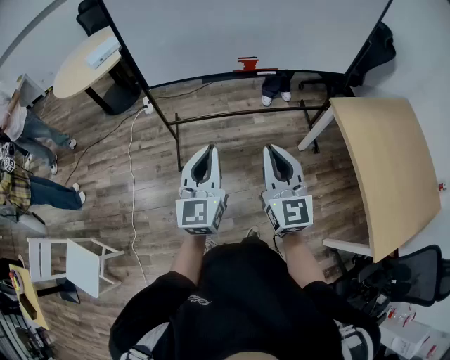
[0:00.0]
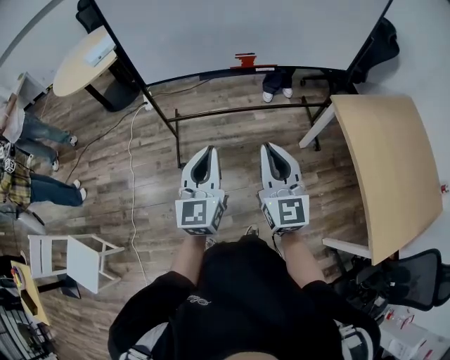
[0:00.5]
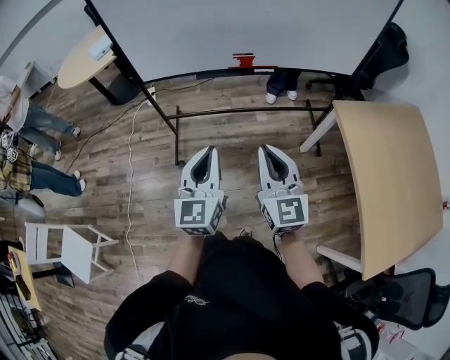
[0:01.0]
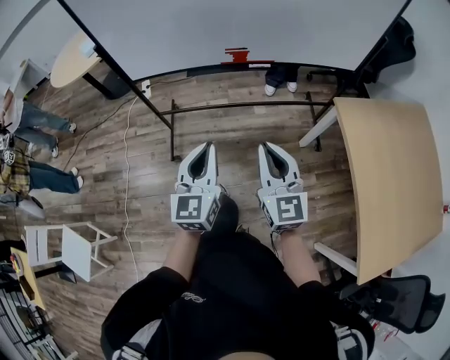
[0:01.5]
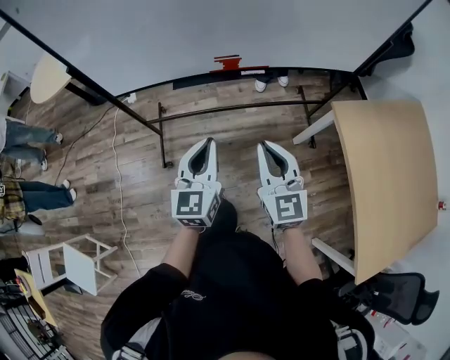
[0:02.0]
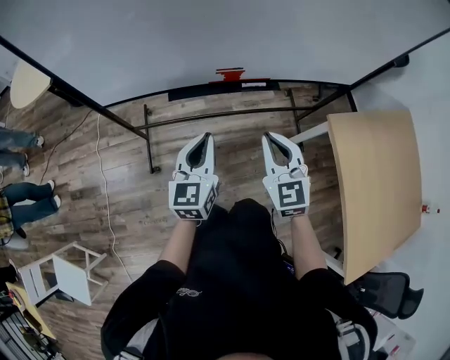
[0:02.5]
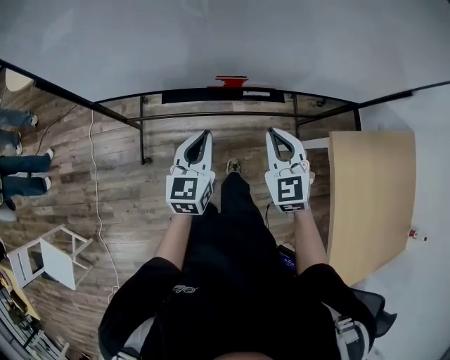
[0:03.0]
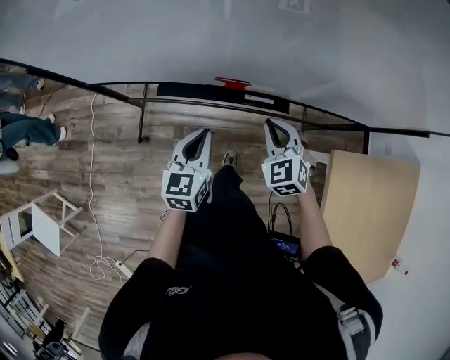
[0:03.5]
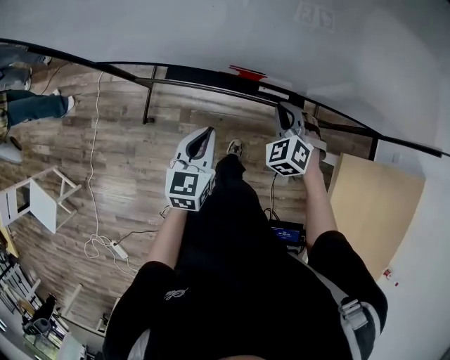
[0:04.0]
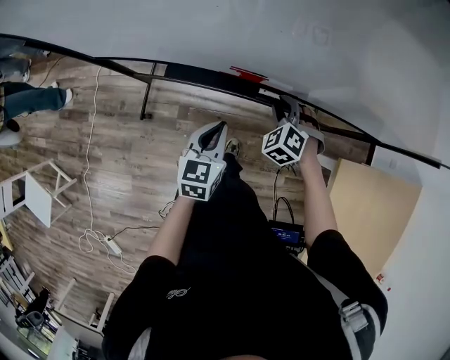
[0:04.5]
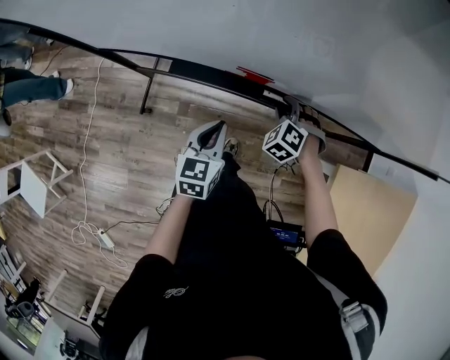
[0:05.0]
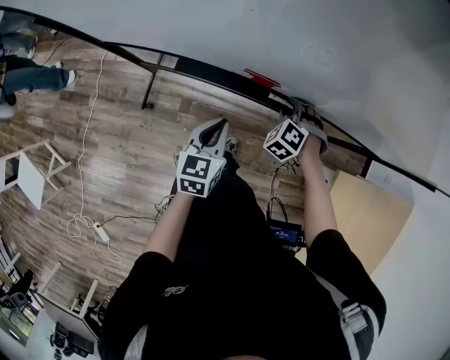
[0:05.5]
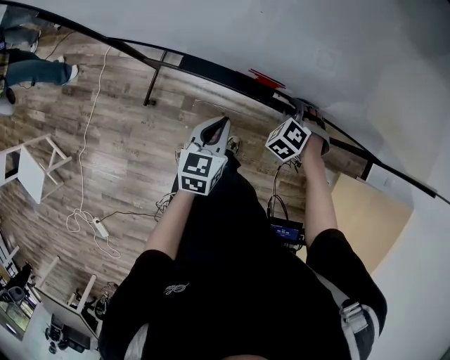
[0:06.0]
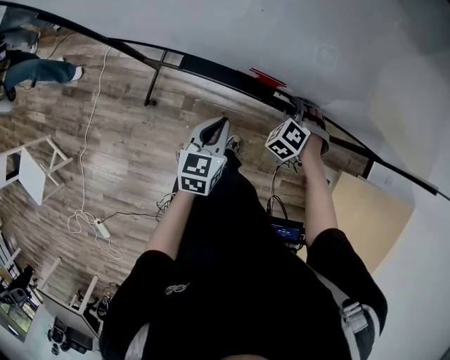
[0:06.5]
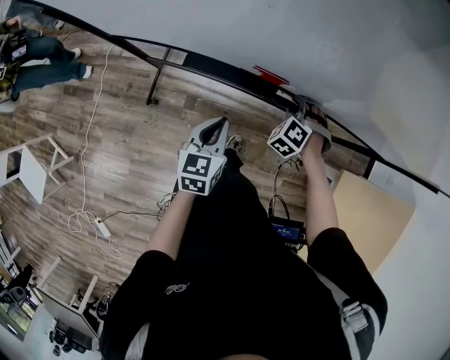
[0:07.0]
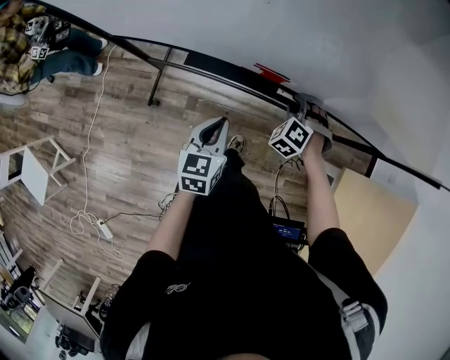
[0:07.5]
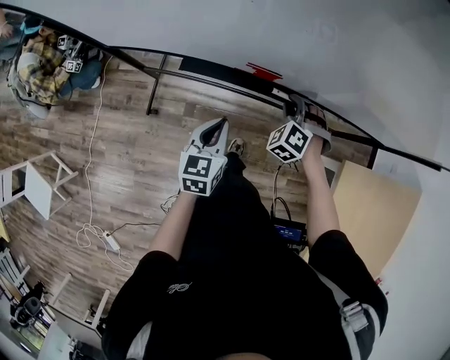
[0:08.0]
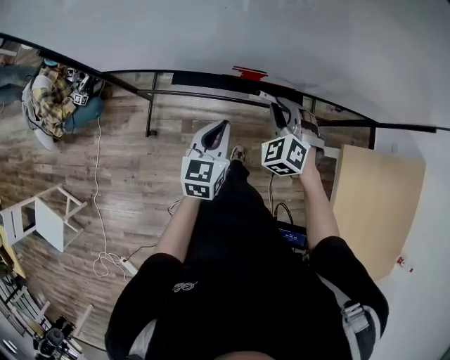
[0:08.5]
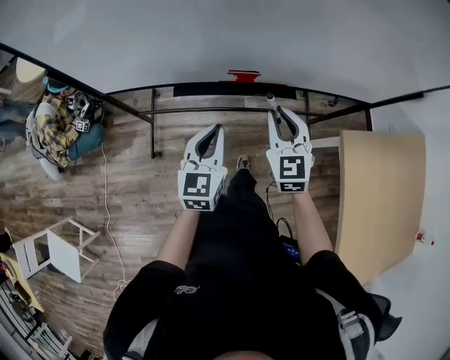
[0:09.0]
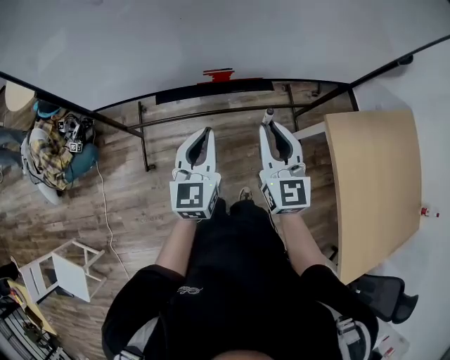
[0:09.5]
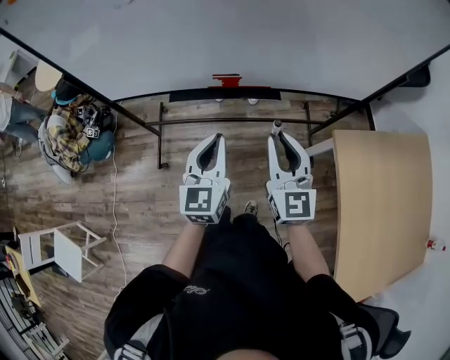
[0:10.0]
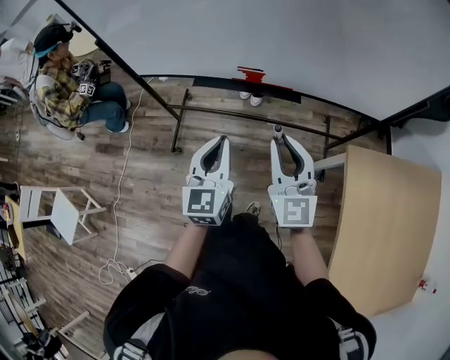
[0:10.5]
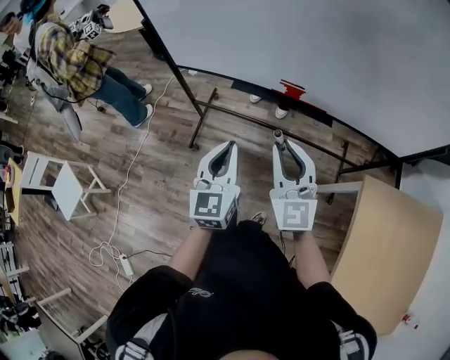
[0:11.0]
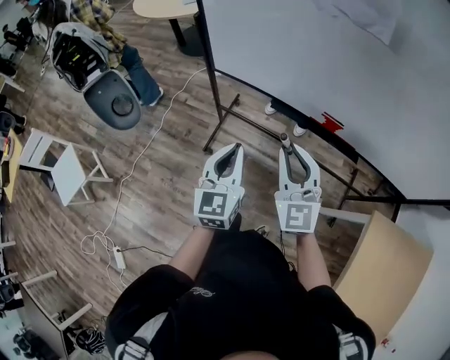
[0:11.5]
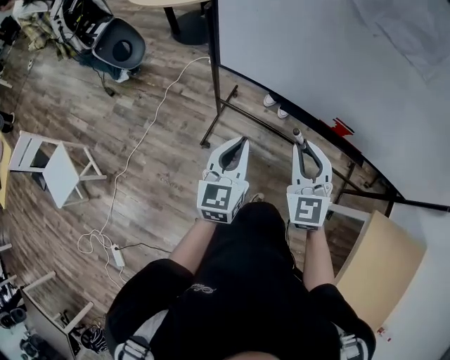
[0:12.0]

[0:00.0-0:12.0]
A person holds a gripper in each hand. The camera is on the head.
0:00.0 to 0:02.0: The right gripper moves forward, to the right and downward, roughly 25 cm. The left gripper shifts approximately 25 cm forward and to the right.
0:02.0 to 0:04.0: The right gripper goes some 40 cm forward and downward, and tilts its fingers roughly 40 degrees downward, while the left gripper heads forward and downward, covering about 25 cm, and turns by about 20 degrees.
0:04.0 to 0:06.0: The right gripper travels downward by some 10 cm, and turns by about 20 degrees. Meanwhile the left gripper shifts by some 5 cm.
0:06.0 to 0:08.0: The right gripper shifts by approximately 5 cm.
0:08.0 to 0:10.0: The left gripper is displaced upward and backward by approximately 20 cm, and changes its angle by approximately 20 degrees. The right gripper shifts approximately 35 cm upward and backward, and tilts its fingers roughly 50 degrees upward.
0:10.0 to 0:12.0: The right gripper moves about 30 cm, and swivels approximately 40 degrees. The left gripper ends up approximately 30 cm from where it was, and swivels about 20 degrees.

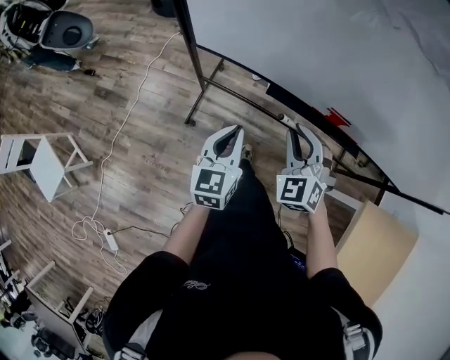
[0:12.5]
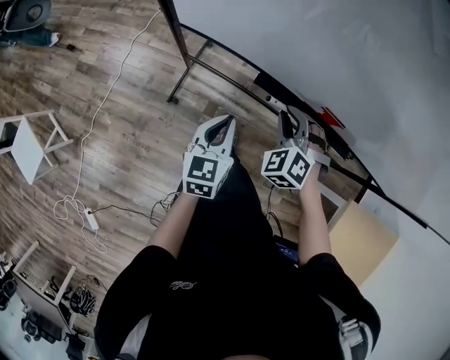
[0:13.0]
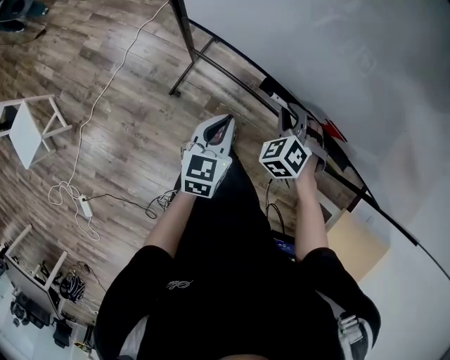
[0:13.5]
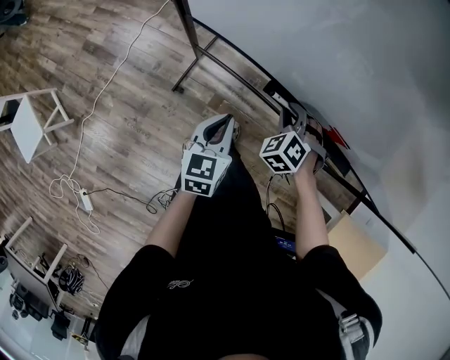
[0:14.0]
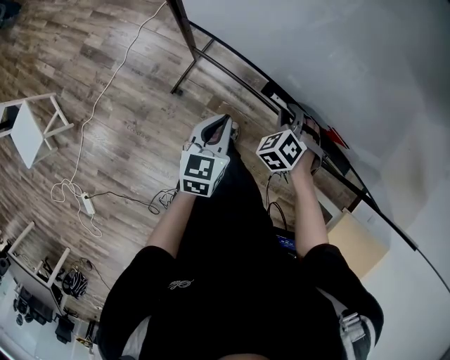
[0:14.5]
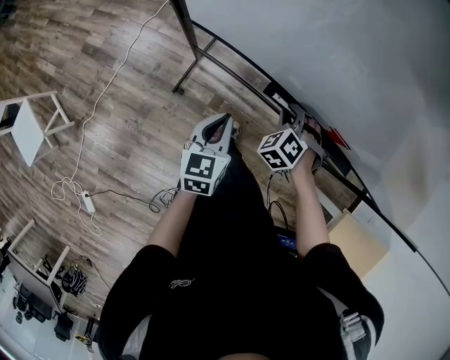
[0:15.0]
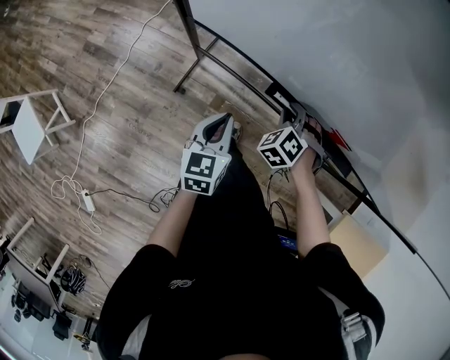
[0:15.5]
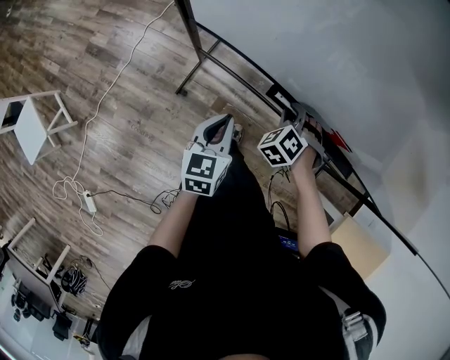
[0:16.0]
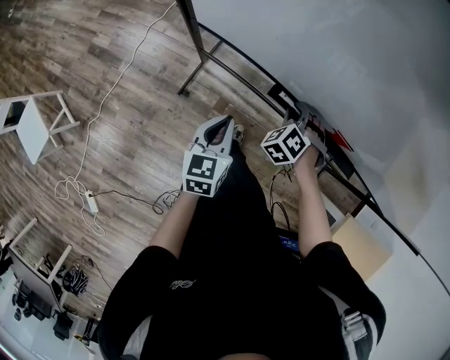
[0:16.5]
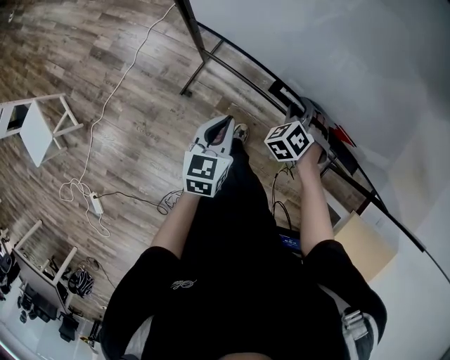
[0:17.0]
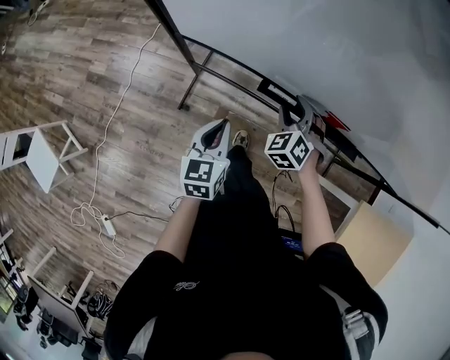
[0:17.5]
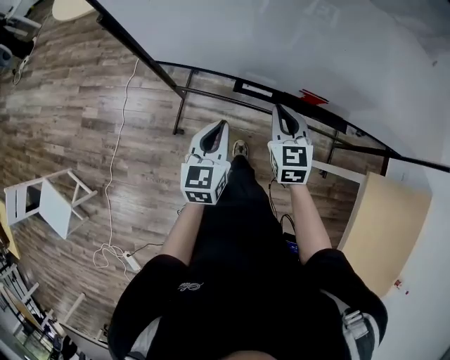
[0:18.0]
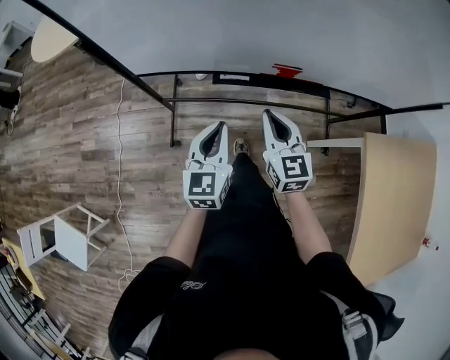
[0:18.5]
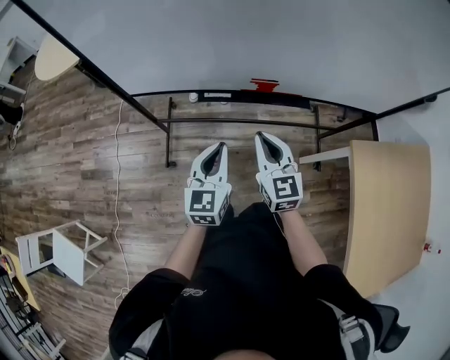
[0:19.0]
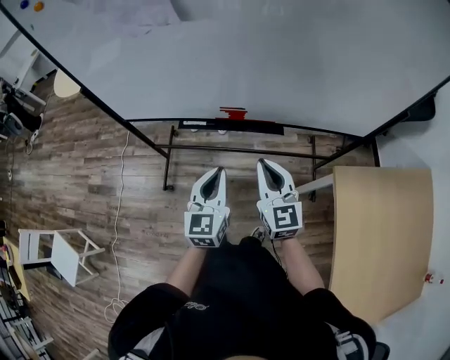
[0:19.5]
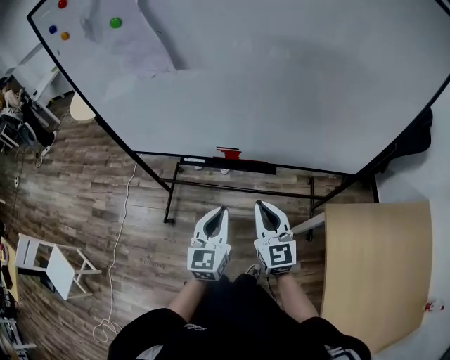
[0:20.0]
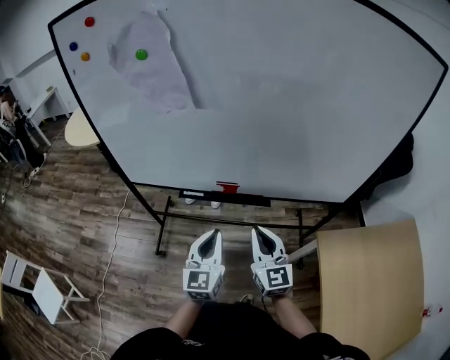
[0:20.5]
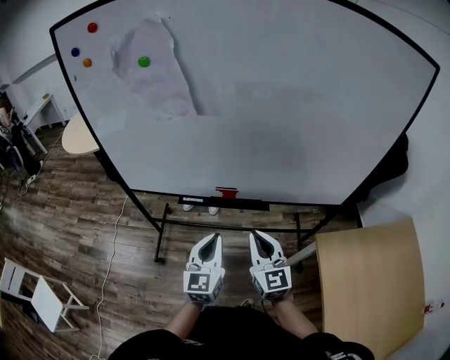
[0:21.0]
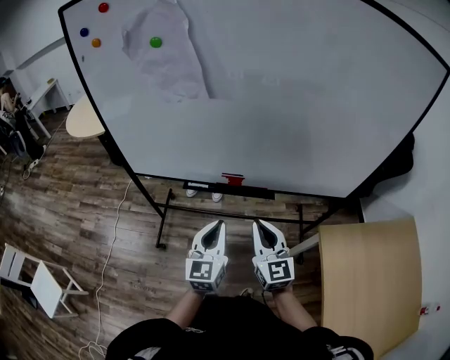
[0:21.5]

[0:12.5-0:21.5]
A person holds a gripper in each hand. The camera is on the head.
0:12.5 to 0:14.5: The left gripper goes roughly 10 cm downward and forward, while the right gripper travels downward and forward by approximately 20 cm, and swivels approximately 30 degrees.
0:14.5 to 0:17.0: The grippers stay close to where they were, moving slightly.
0:17.0 to 0:19.5: The right gripper is displaced backward, upward and to the right by some 40 cm, tips its fingers upward by about 50 degrees, and closes, while the left gripper travels to the right, upward and backward by approximately 35 cm, and rotates roughly 30 degrees.
0:19.5 to 0:21.5: The two grippers go about 5 cm upward.

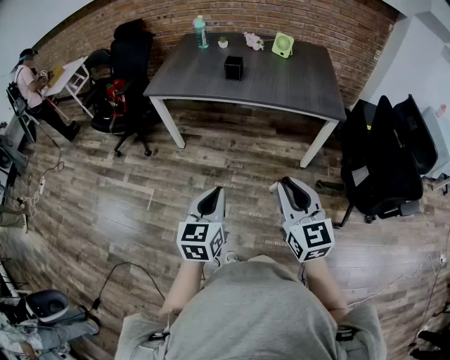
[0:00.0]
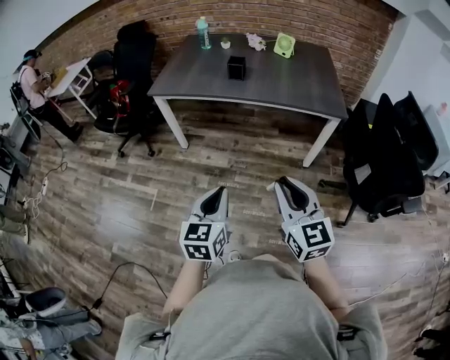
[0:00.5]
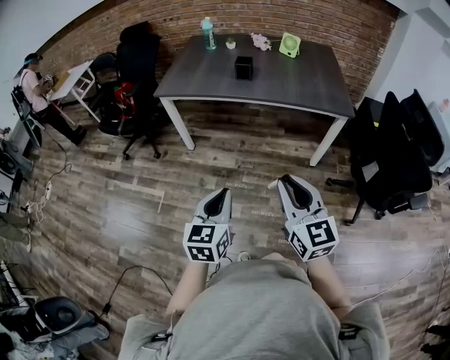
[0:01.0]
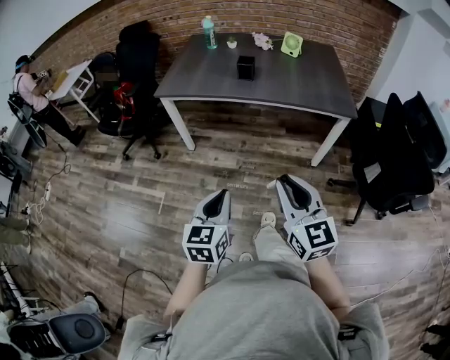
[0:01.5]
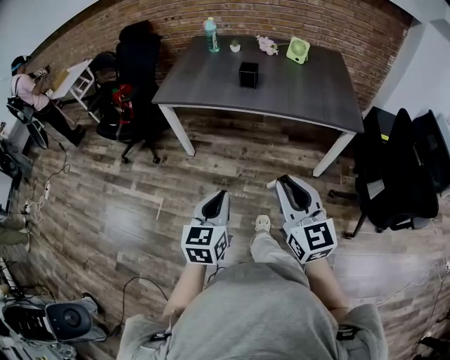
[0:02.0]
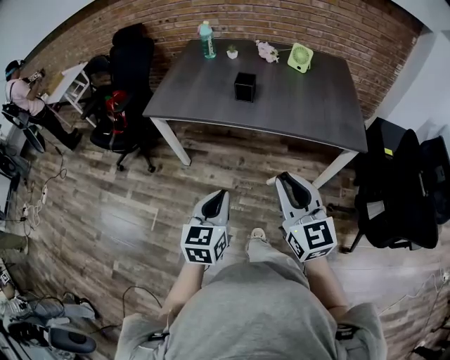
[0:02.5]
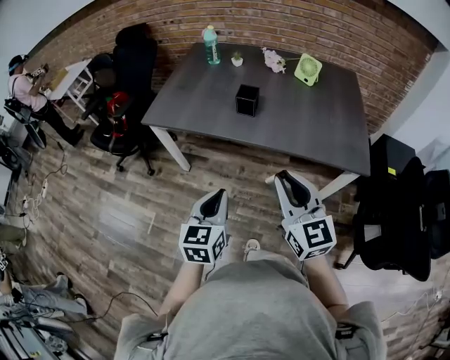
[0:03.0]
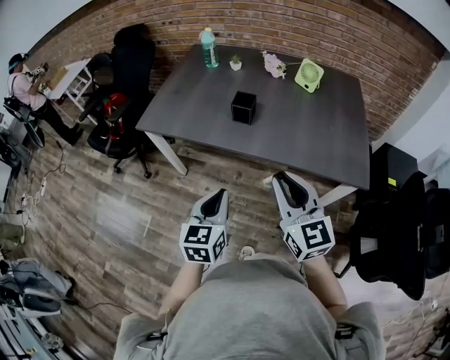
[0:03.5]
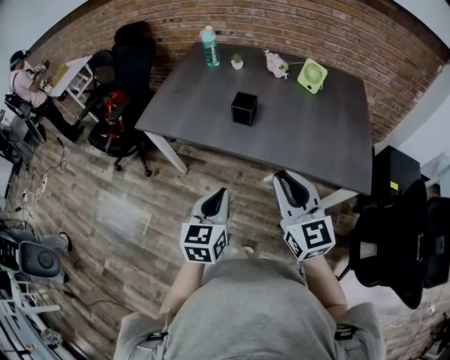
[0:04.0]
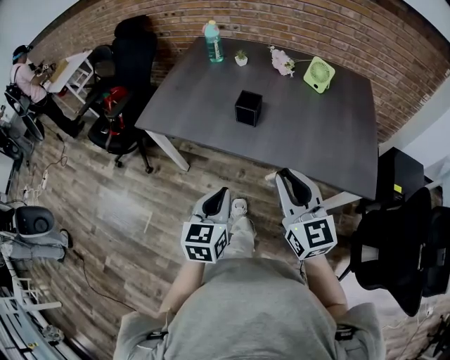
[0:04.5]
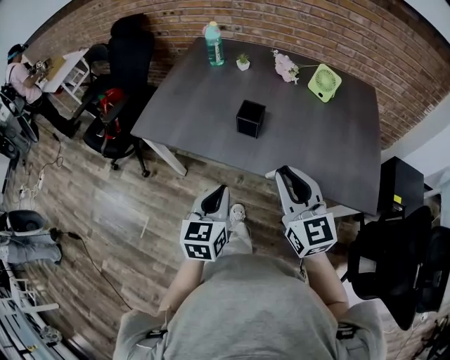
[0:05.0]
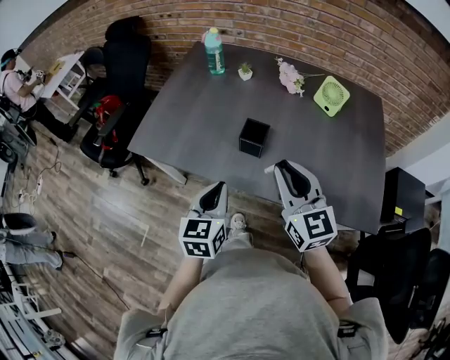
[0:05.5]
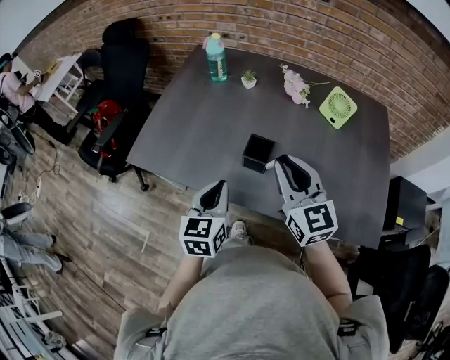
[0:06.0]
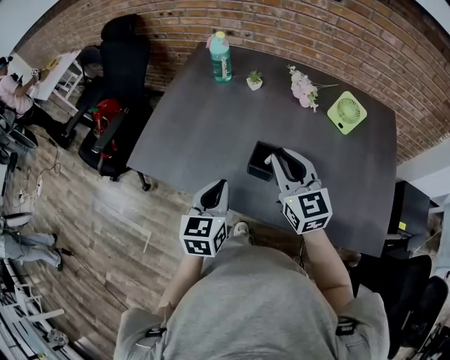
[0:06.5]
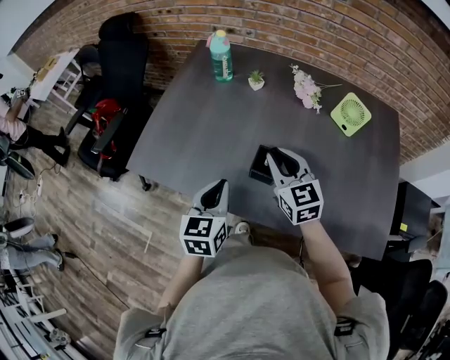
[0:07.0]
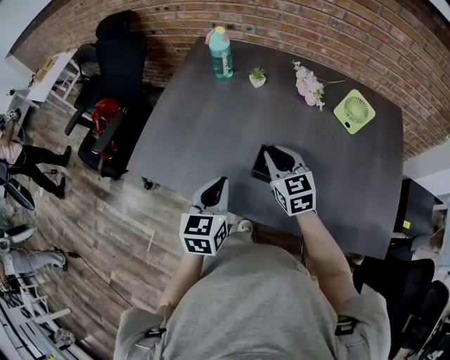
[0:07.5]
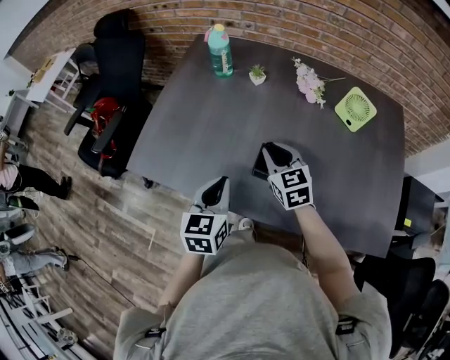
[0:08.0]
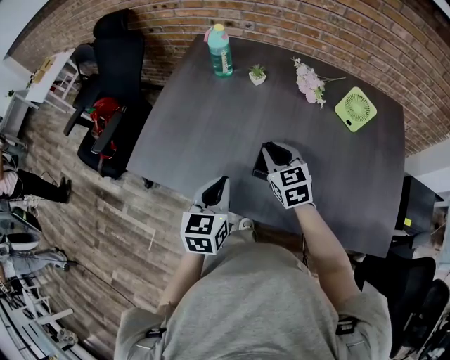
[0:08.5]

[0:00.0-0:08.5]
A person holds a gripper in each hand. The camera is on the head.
0:00.0 to 0:02.0: The right gripper moves forward and to the left, some 10 cm; the left gripper is displaced forward by some 10 cm.
0:02.0 to 0:04.0: The right gripper heads forward, covering about 30 cm, while the left gripper travels forward and to the right by approximately 30 cm.
0:04.0 to 0:06.5: Both grippers move forward, approximately 35 cm.
0:06.5 to 0:08.5: The right gripper heads downward and forward, covering some 15 cm.
